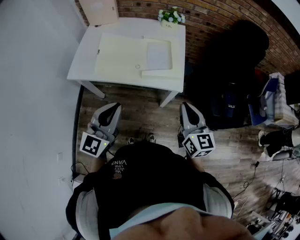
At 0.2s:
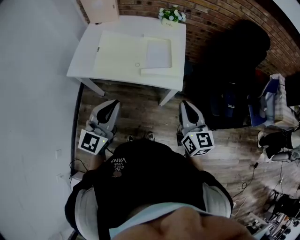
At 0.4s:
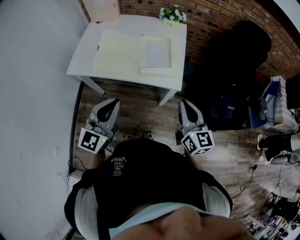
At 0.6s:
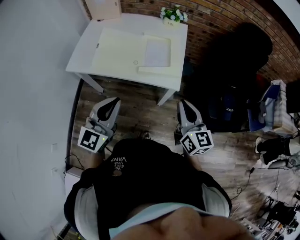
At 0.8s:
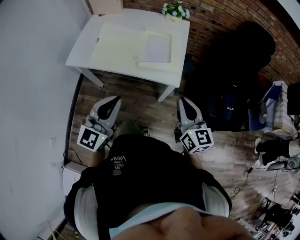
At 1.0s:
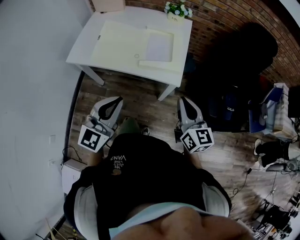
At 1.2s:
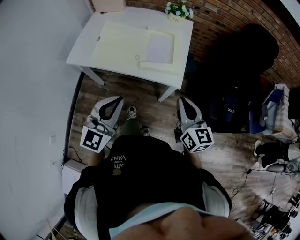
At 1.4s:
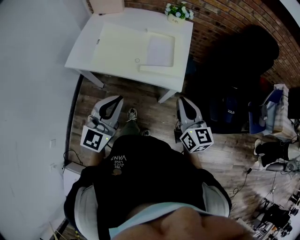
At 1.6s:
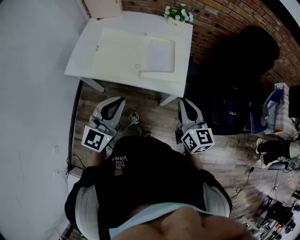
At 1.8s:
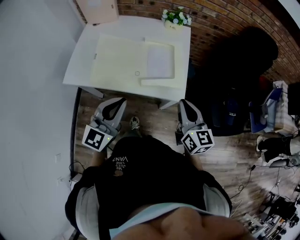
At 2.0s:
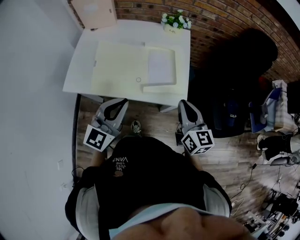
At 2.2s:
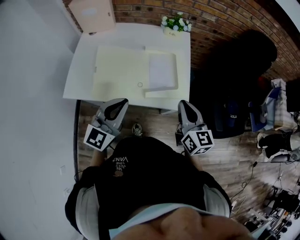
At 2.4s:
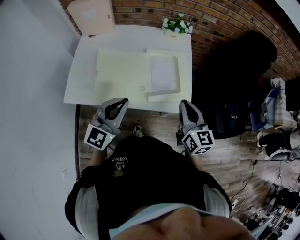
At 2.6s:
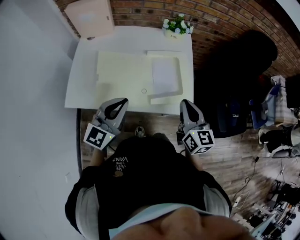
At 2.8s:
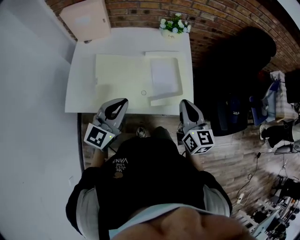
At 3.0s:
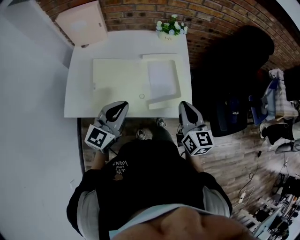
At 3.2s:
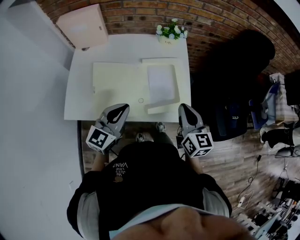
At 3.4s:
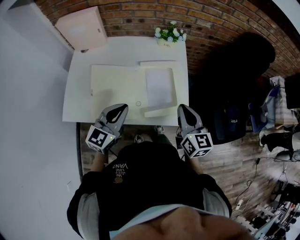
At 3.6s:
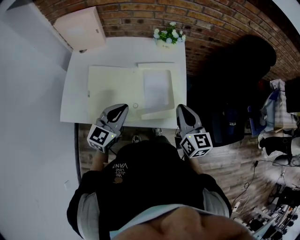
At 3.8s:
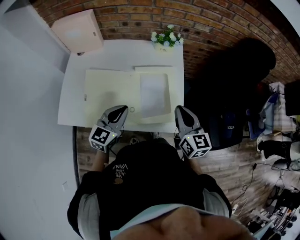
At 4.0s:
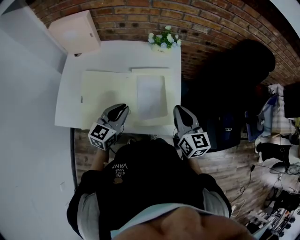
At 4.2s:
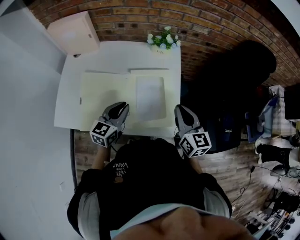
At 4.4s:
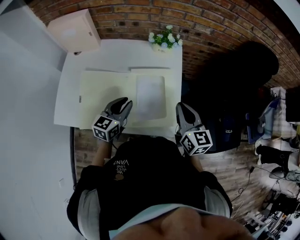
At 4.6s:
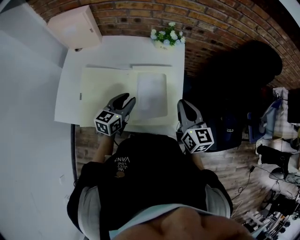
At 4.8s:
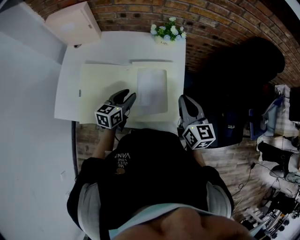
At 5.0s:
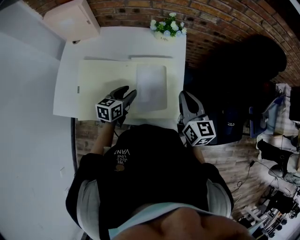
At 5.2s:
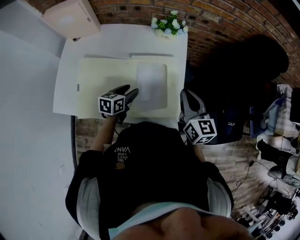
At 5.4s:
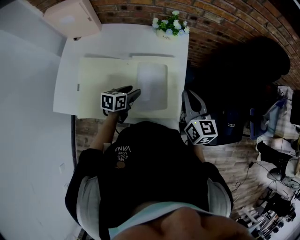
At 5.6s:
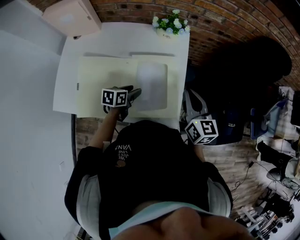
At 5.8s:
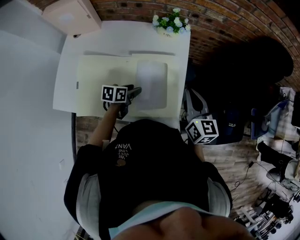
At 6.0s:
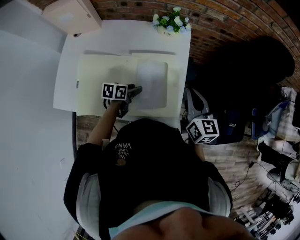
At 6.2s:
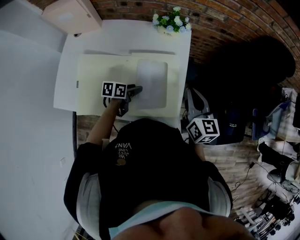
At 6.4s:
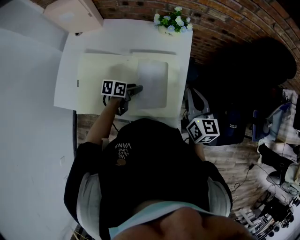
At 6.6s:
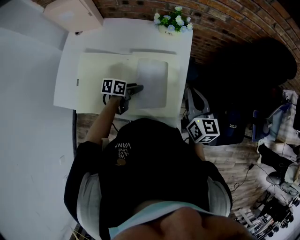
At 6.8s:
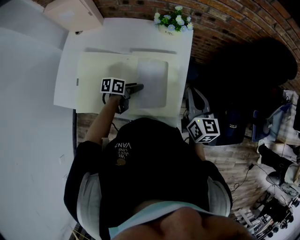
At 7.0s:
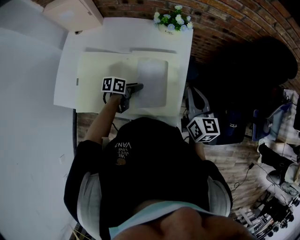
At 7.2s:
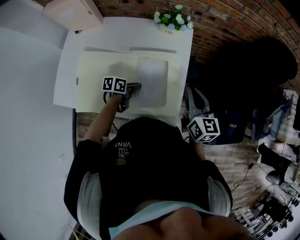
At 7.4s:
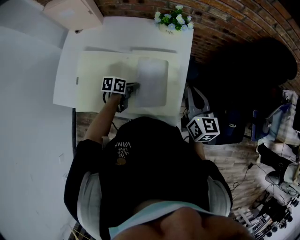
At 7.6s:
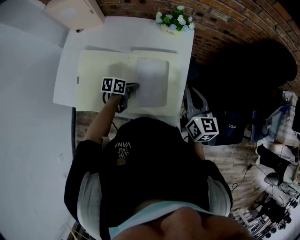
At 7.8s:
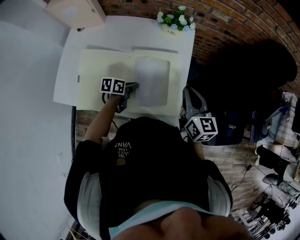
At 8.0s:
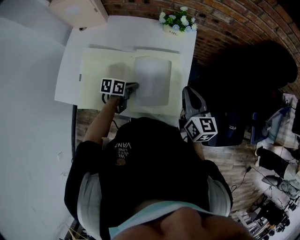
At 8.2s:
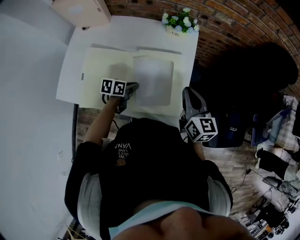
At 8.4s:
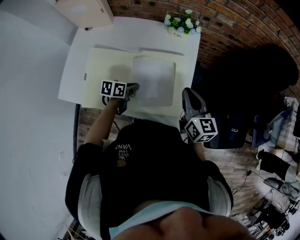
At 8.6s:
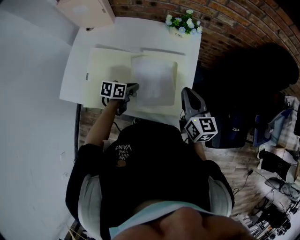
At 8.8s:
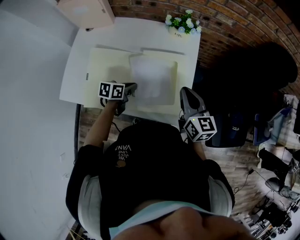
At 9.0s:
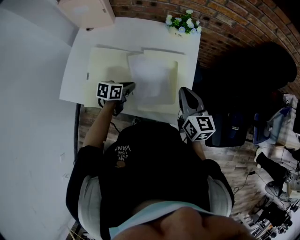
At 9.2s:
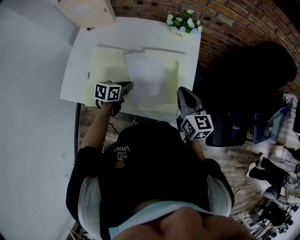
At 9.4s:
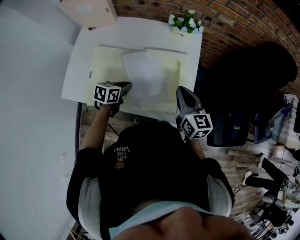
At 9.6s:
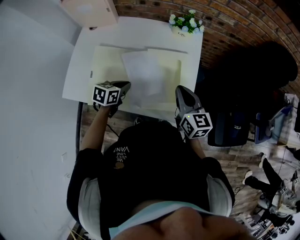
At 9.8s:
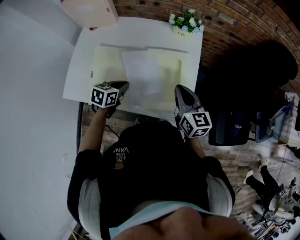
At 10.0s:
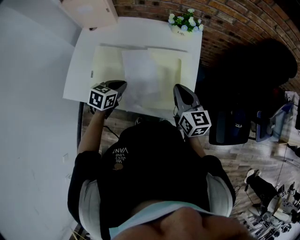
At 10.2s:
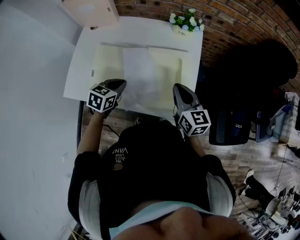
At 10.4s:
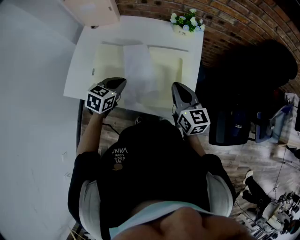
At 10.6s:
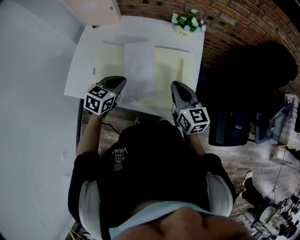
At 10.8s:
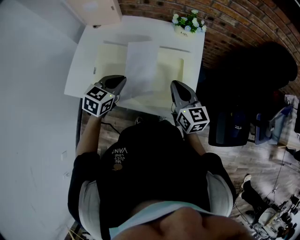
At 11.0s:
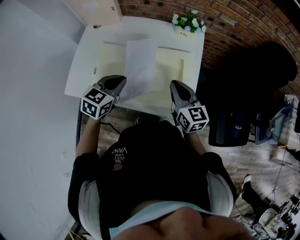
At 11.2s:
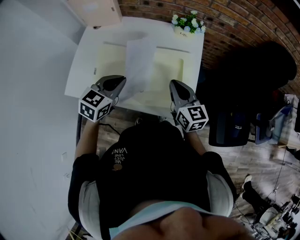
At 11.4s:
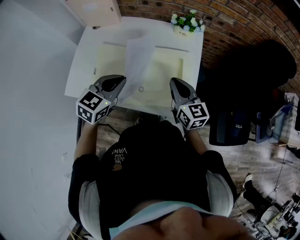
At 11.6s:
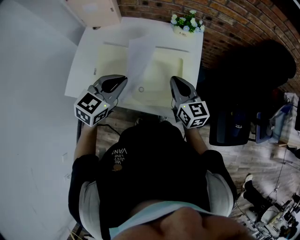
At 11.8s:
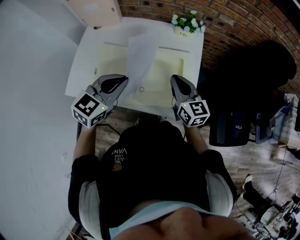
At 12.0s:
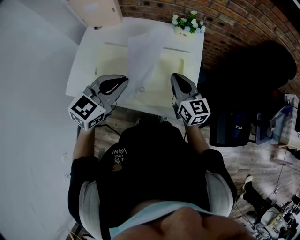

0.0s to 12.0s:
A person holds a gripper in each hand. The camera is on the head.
0.0s to 1.6s: The grippers both shift forward by roughly 5 cm.
1.6s to 3.0s: The grippers both shift forward and to the left by roughly 15 cm.
3.0s to 4.4s: The right gripper travels forward and to the right by some 15 cm, while the left gripper is displaced forward, downward and to the right by approximately 15 cm.
4.4s to 6.0s: The right gripper moves about 5 cm, while the left gripper moves downward, about 15 cm, turns by approximately 40 degrees, and opens its fingers.
6.0s to 7.6s: The left gripper closes.
7.6s to 9.0s: The right gripper shifts some 5 cm to the left. The left gripper goes approximately 10 cm upward and to the left.
9.0s to 10.4s: The left gripper heads upward, covering roughly 10 cm, and turns by about 30 degrees. Meanwhile the right gripper changes place by about 5 cm.
10.4s to 12.0s: The left gripper moves upward, approximately 15 cm, and rotates approximately 30 degrees.

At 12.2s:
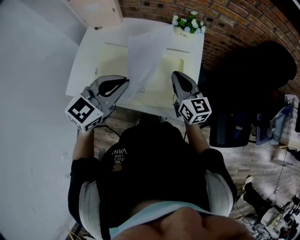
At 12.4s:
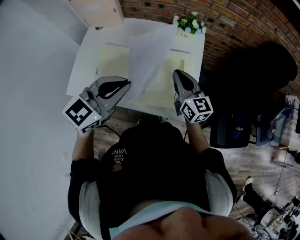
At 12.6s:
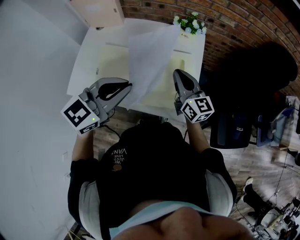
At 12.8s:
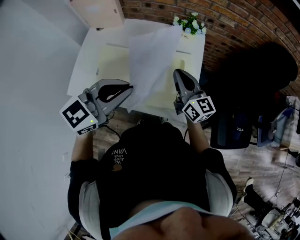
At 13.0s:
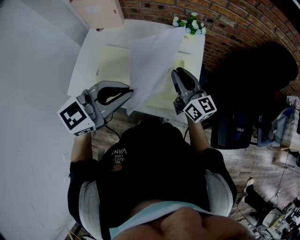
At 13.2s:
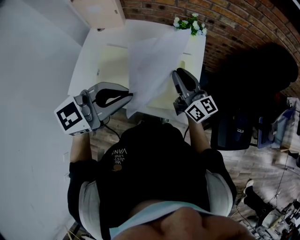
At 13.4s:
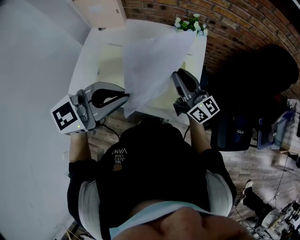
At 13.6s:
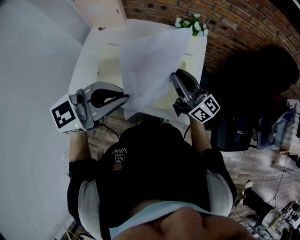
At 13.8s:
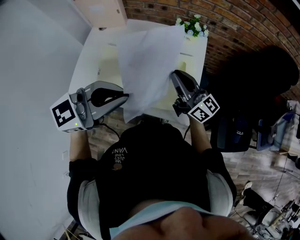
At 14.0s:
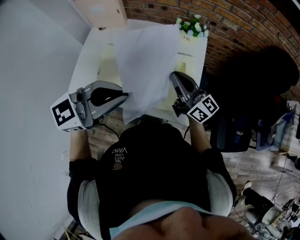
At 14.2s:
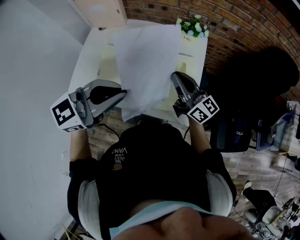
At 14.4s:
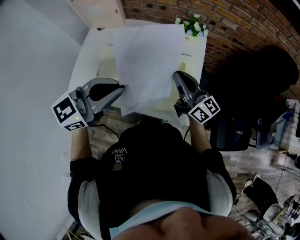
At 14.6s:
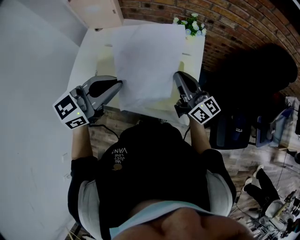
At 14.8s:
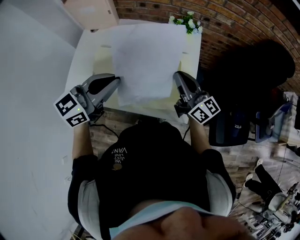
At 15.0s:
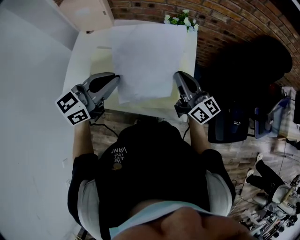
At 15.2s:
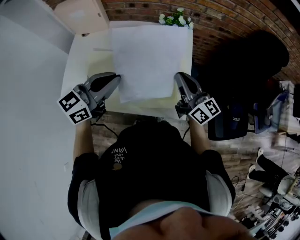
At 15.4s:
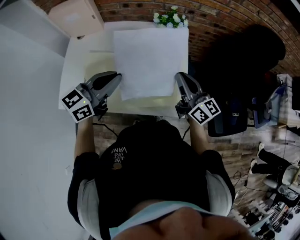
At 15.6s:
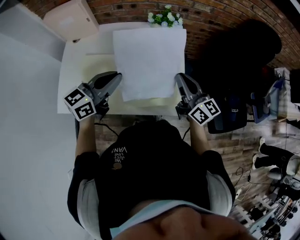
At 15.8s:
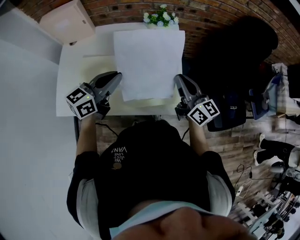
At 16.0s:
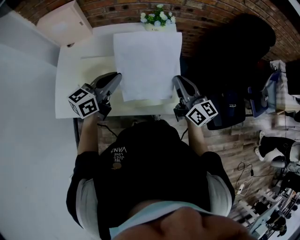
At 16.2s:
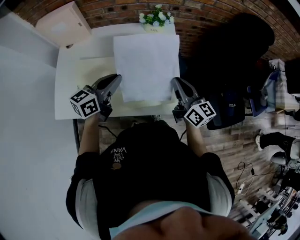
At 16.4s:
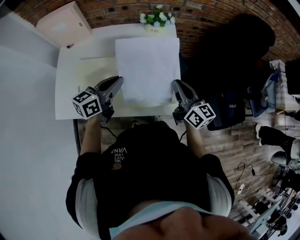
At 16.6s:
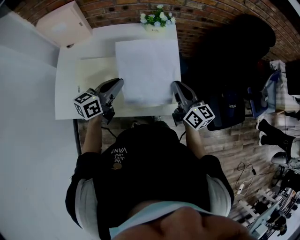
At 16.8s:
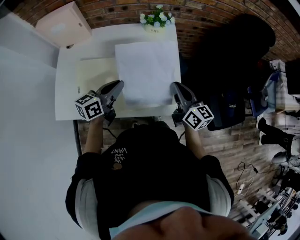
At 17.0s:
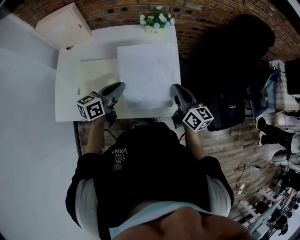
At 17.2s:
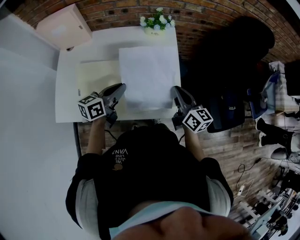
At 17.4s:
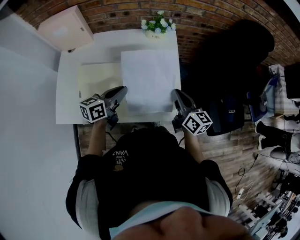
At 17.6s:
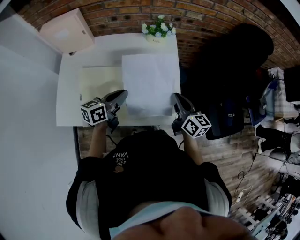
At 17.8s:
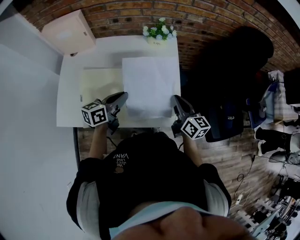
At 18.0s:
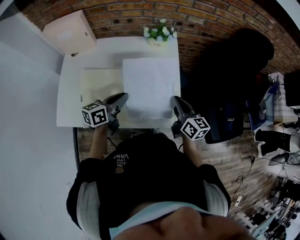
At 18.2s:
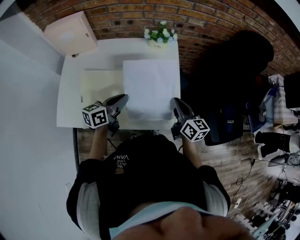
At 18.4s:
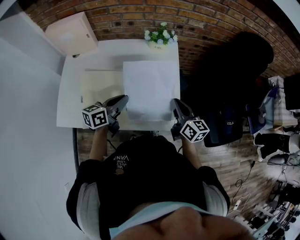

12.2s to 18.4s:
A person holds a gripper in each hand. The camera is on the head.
12.2s to 13.8s: The grippers both shift upward by roughly 5 cm. The right gripper turns by roughly 30 degrees. The left gripper turns by some 20 degrees.
13.8s to 15.4s: The right gripper heads to the right, covering roughly 5 cm, and changes its angle by some 20 degrees. The left gripper goes approximately 15 cm downward and forward, and changes its angle by about 20 degrees.
15.4s to 16.8s: The left gripper heads downward, covering roughly 10 cm, and rotates some 20 degrees, while the right gripper heads downward, covering some 5 cm.
16.8s to 18.4s: There are only small adjustments of the grippers.

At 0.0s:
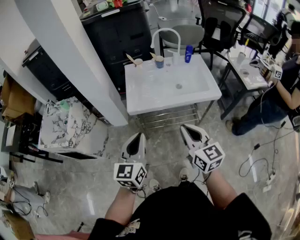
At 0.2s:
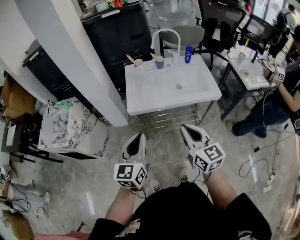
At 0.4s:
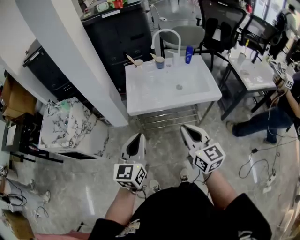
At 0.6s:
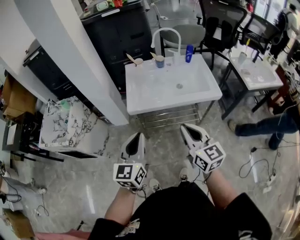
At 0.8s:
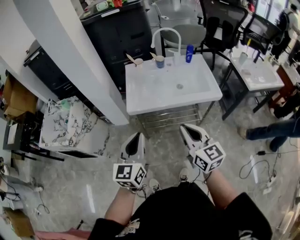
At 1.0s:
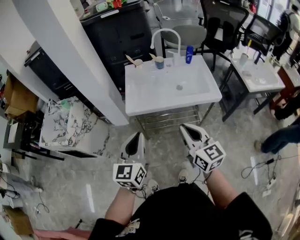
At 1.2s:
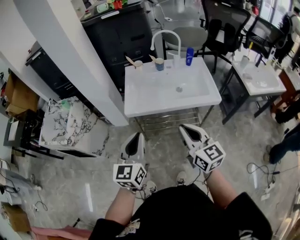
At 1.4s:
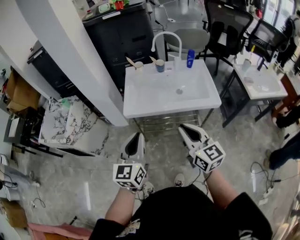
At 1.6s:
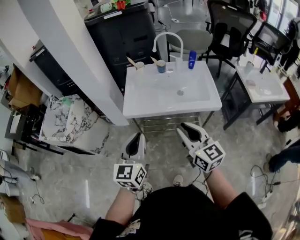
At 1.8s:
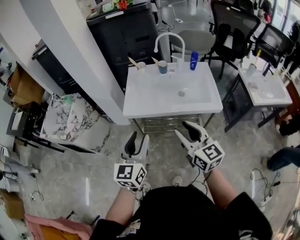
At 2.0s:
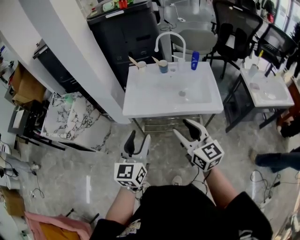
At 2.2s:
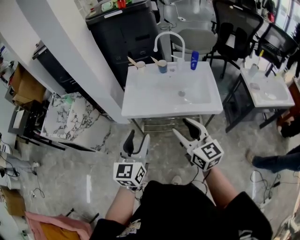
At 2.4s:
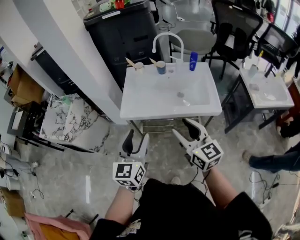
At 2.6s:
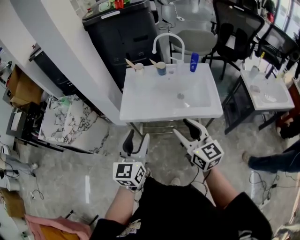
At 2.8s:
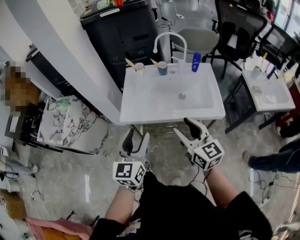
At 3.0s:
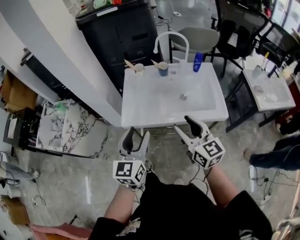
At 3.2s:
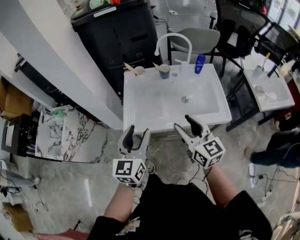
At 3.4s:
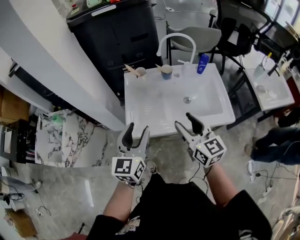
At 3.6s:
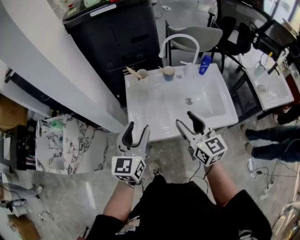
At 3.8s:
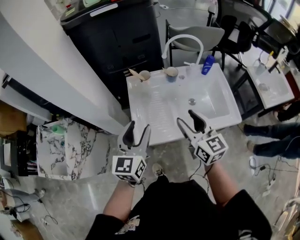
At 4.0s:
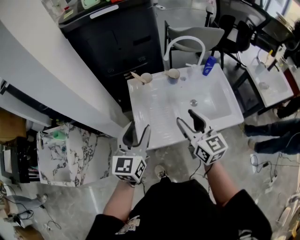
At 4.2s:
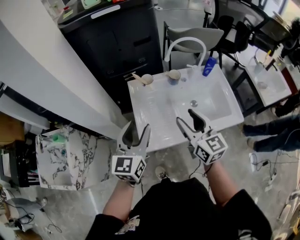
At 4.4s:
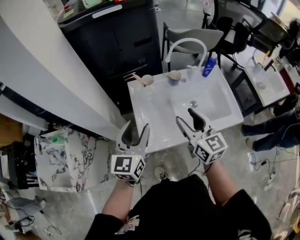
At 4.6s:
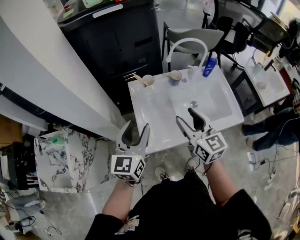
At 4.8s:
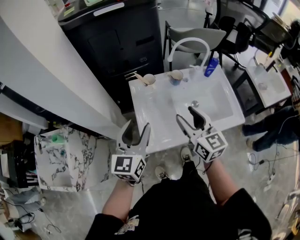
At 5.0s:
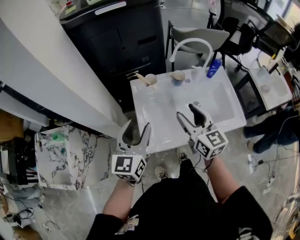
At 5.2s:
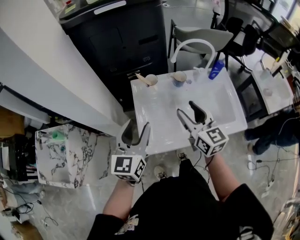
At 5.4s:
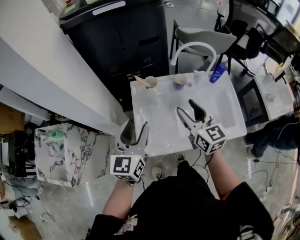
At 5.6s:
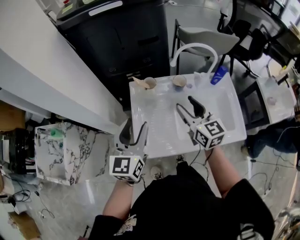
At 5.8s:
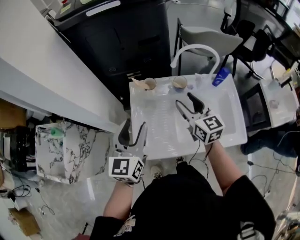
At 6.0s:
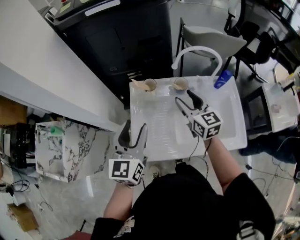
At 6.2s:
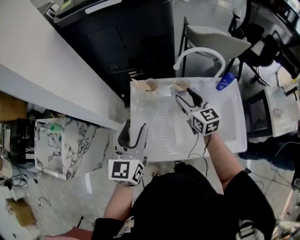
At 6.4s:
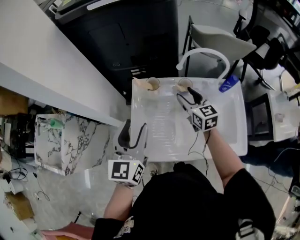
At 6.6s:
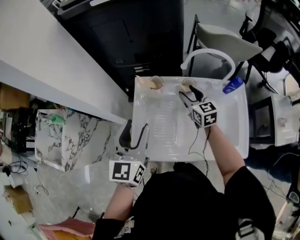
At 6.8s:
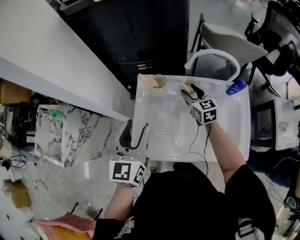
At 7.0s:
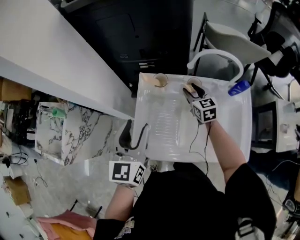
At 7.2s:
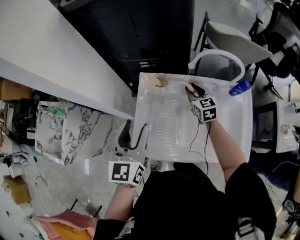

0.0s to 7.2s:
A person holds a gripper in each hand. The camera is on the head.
0.0s to 1.4s: The two grippers go about 5 cm to the right.
1.4s to 2.8s: The right gripper is displaced forward by roughly 10 cm, and opens, while the left gripper travels forward and to the right by some 10 cm, and opens up.
2.8s to 4.4s: Both grippers travel together forward and to the left, approximately 30 cm.
4.4s to 5.8s: The right gripper heads forward, covering approximately 15 cm. The left gripper is displaced forward by roughly 5 cm.
5.8s to 7.2s: The right gripper is displaced downward and forward by approximately 20 cm, and closes up.
